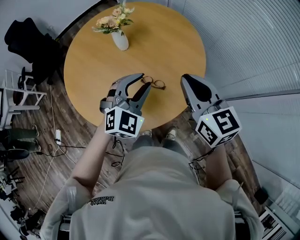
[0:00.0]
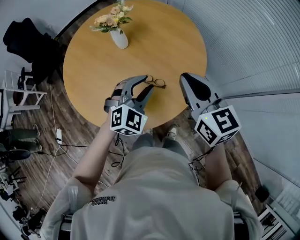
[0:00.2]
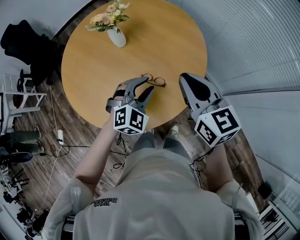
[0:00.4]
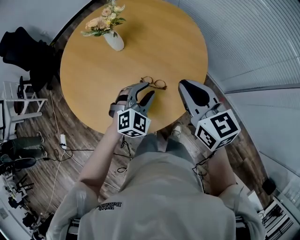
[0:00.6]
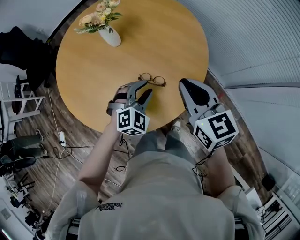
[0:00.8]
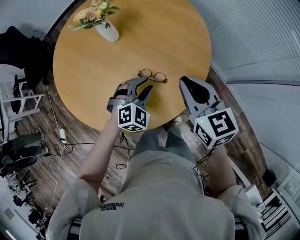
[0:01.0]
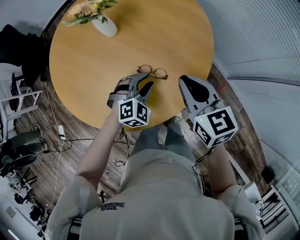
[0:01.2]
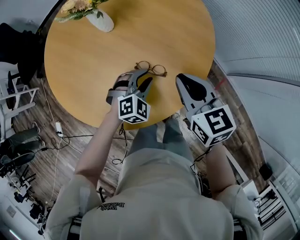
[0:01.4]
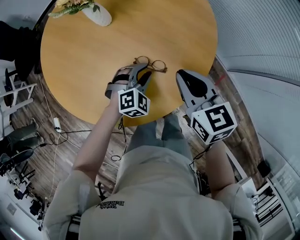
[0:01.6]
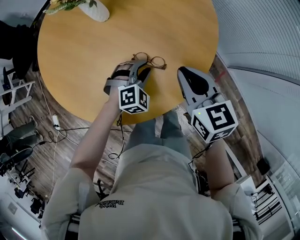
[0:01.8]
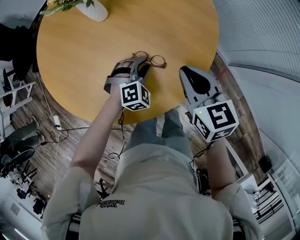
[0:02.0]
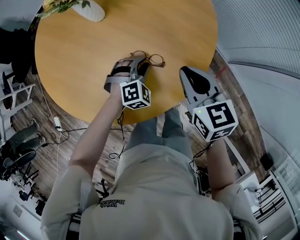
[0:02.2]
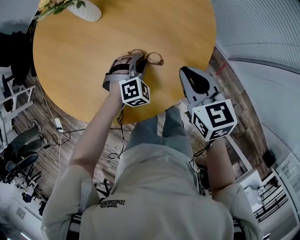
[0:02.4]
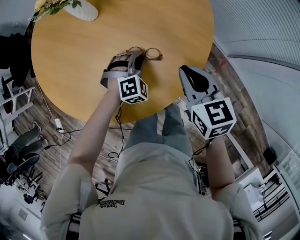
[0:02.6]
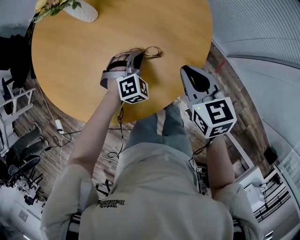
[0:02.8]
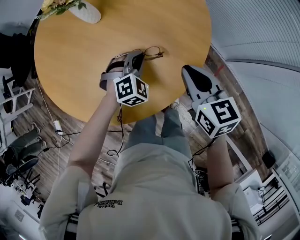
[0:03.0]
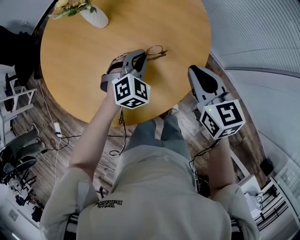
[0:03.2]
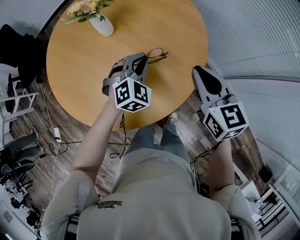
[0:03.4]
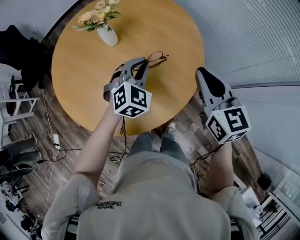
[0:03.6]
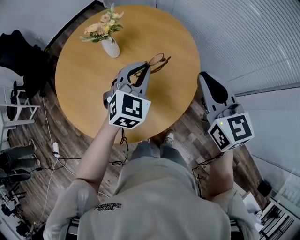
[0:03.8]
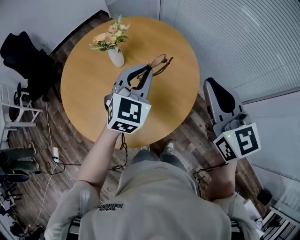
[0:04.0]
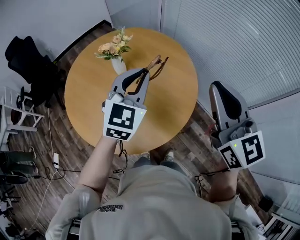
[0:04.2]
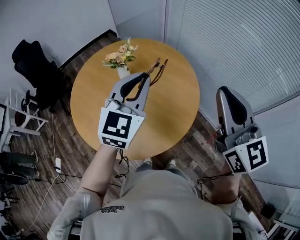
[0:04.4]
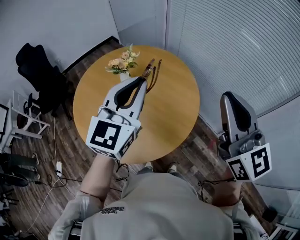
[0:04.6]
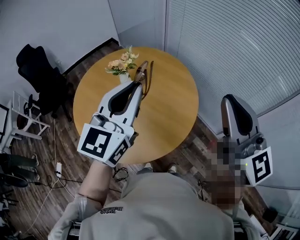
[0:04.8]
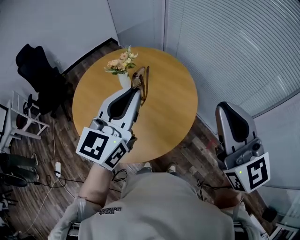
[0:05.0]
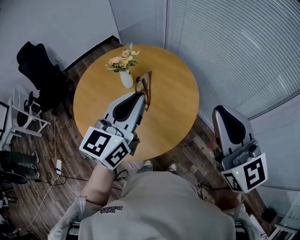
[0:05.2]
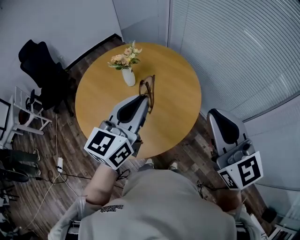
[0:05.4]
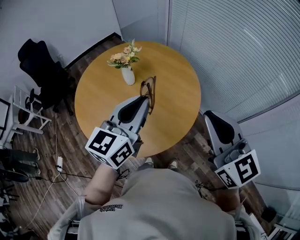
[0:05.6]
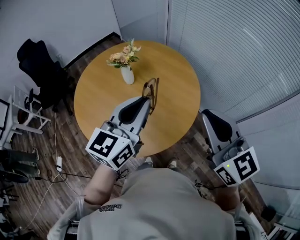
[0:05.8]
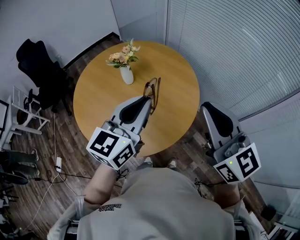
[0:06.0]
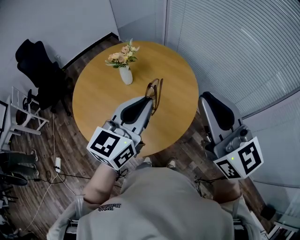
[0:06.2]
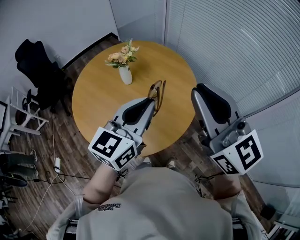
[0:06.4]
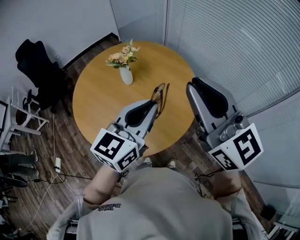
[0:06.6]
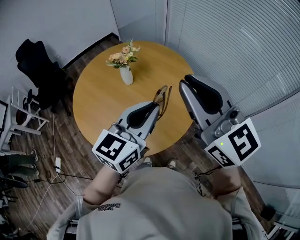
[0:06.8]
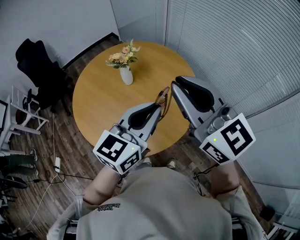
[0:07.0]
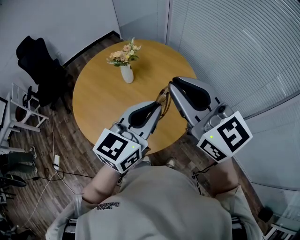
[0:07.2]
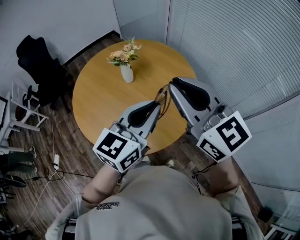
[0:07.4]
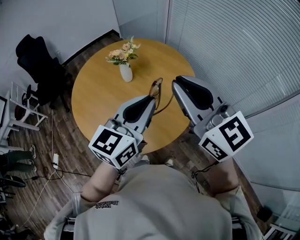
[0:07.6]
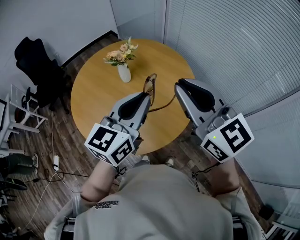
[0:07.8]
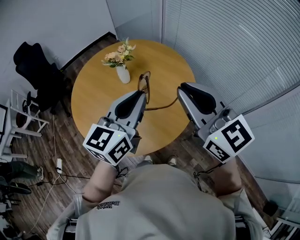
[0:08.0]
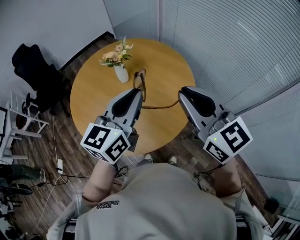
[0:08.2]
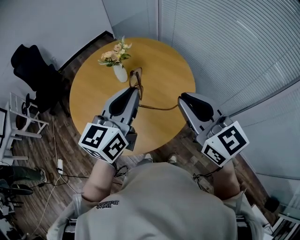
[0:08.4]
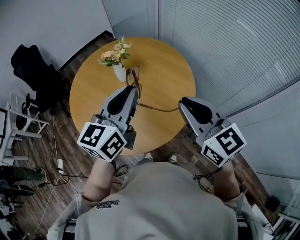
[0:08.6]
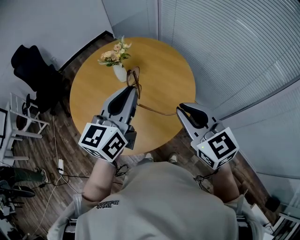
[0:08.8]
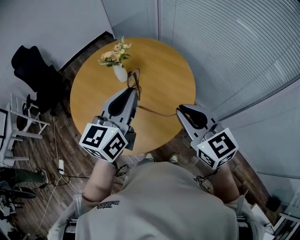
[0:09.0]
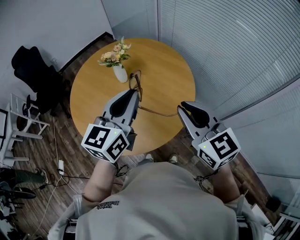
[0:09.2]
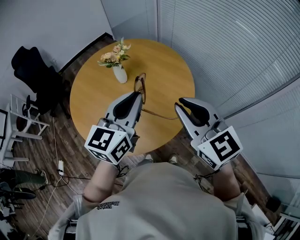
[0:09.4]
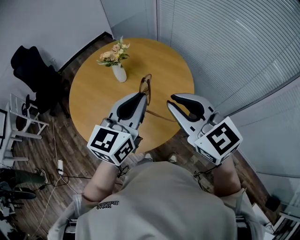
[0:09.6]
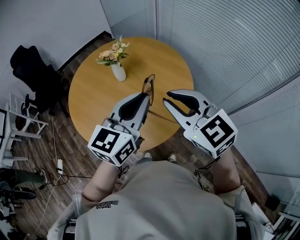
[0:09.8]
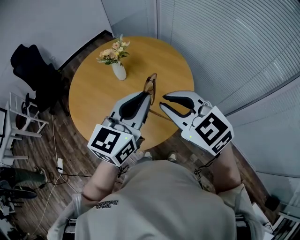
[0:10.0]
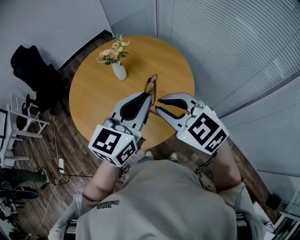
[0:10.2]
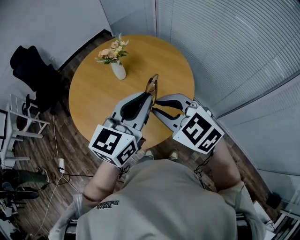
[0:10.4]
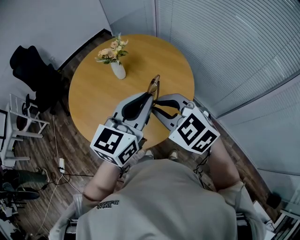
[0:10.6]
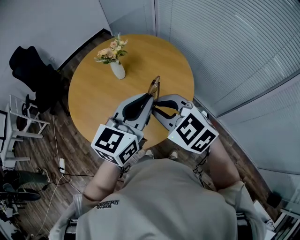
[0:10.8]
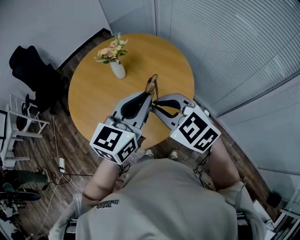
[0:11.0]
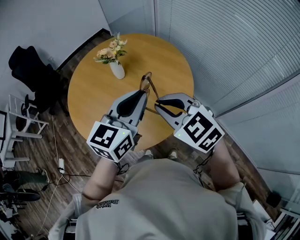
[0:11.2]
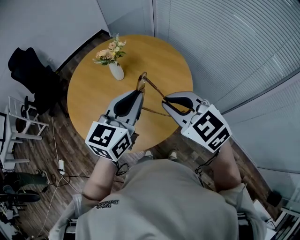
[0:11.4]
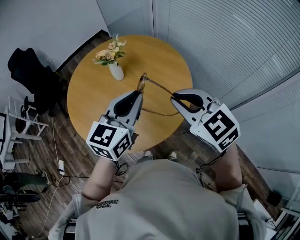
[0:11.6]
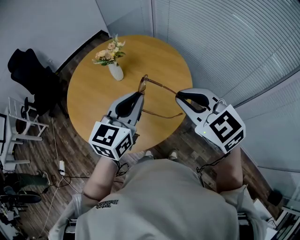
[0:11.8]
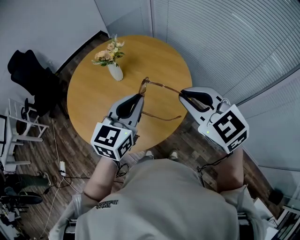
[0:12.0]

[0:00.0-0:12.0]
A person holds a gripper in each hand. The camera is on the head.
0:00.0 to 0:01.6: Both grippers move downward, roughly 20 cm. The left gripper turns by approximately 20 degrees.
0:01.6 to 0:03.0: The left gripper closes up. Meanwhile the right gripper shifts by approximately 5 cm.
0:03.0 to 0:04.4: The two grippers go approximately 40 cm upward. The left gripper angles its fingers upward, by some 40 degrees; the right gripper tips its fingers upward by about 30 degrees.
0:04.4 to 0:06.0: The left gripper moves backward, approximately 10 cm, and turns by some 30 degrees. Meanwhile the right gripper shifts roughly 5 cm backward, and moves roughly 5 cm upward and comes back.
0:06.0 to 0:07.6: The right gripper is displaced to the left by some 5 cm.
0:07.6 to 0:09.0: The right gripper shifts roughly 10 cm downward.
0:09.0 to 0:10.4: The right gripper shifts approximately 5 cm to the left, and swivels about 30 degrees, while the left gripper goes approximately 5 cm to the right.
0:10.4 to 0:12.0: The right gripper is displaced to the right by approximately 10 cm, while the left gripper changes place by approximately 5 cm.

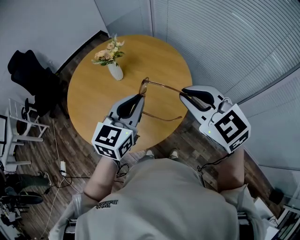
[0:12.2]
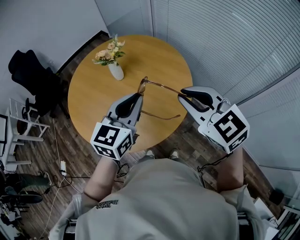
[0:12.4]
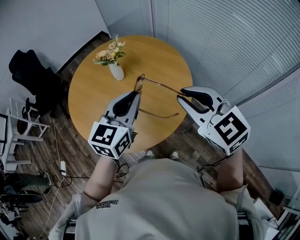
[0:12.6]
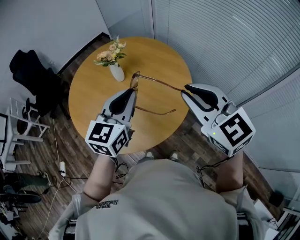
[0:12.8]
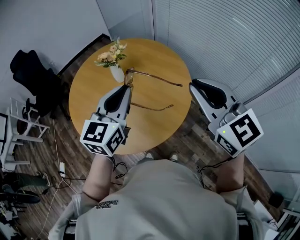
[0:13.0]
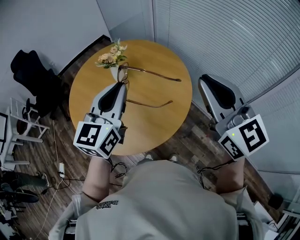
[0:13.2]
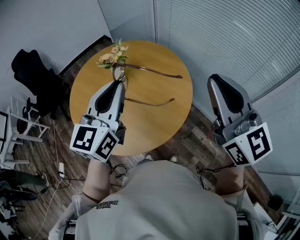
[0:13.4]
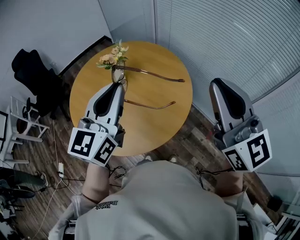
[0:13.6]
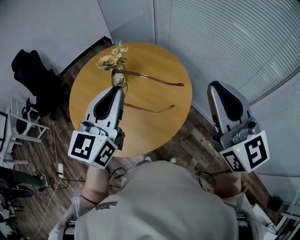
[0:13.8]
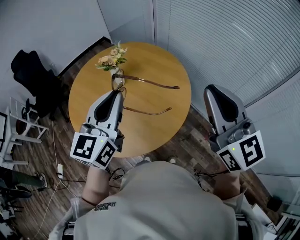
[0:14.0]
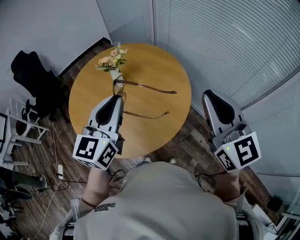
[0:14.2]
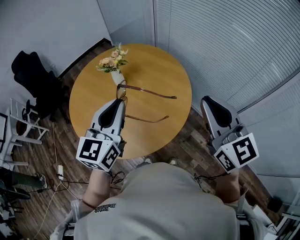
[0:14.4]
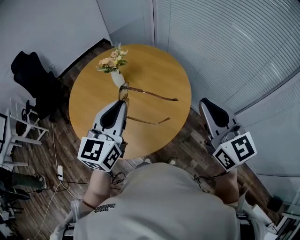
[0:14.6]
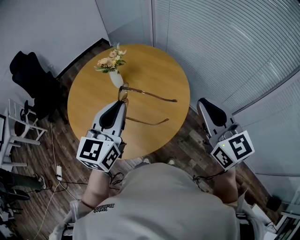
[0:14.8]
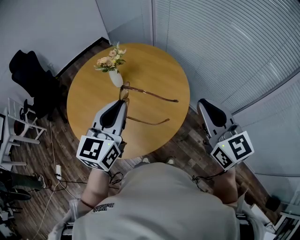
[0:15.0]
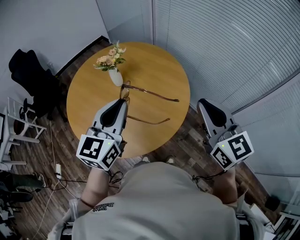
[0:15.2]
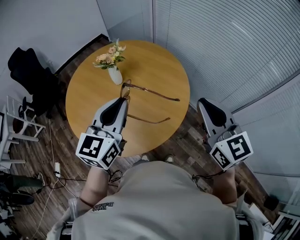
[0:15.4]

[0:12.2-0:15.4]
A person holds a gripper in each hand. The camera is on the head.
0:12.2 to 0:13.8: The left gripper goes approximately 15 cm upward and to the left; the right gripper heads upward and to the right, covering about 15 cm, and tips its fingers upward by roughly 30 degrees.
0:13.8 to 0:15.4: Both grippers travel together downward, roughly 10 cm.

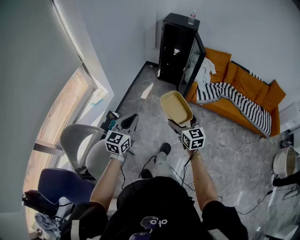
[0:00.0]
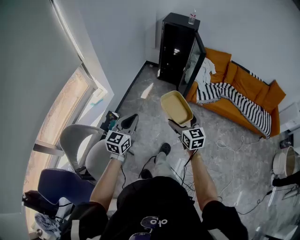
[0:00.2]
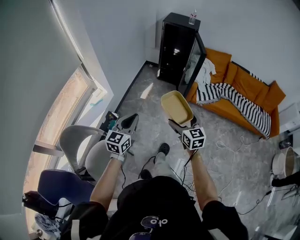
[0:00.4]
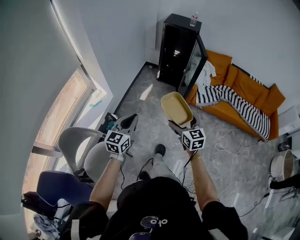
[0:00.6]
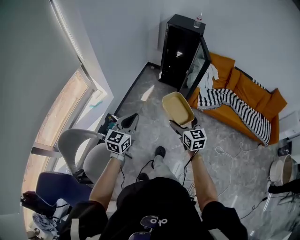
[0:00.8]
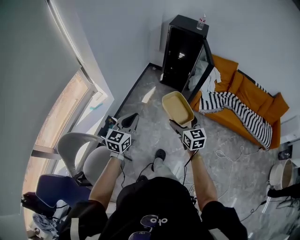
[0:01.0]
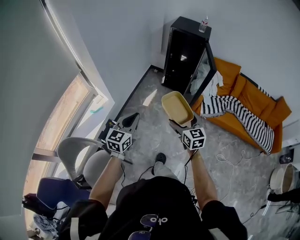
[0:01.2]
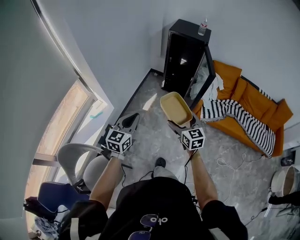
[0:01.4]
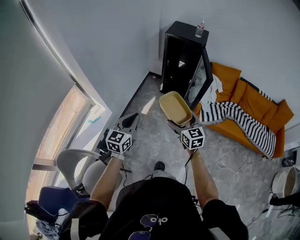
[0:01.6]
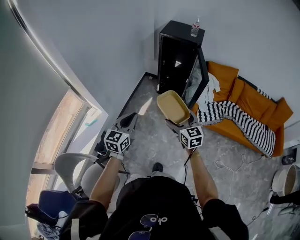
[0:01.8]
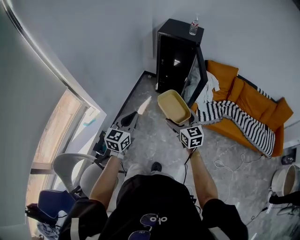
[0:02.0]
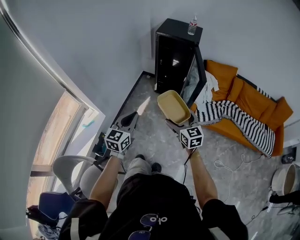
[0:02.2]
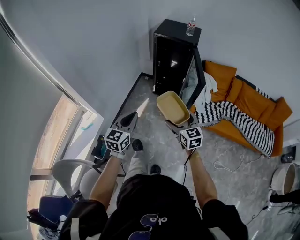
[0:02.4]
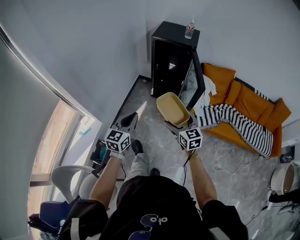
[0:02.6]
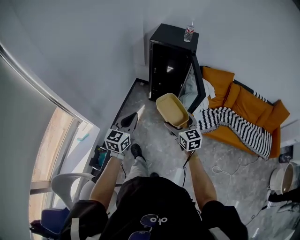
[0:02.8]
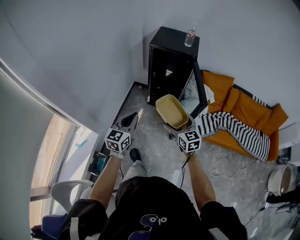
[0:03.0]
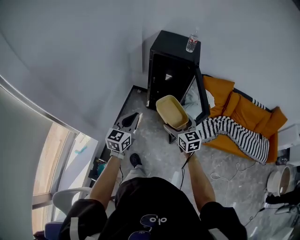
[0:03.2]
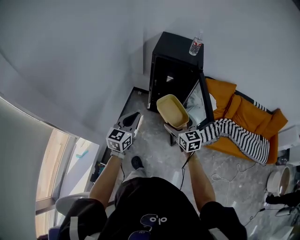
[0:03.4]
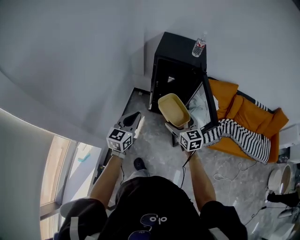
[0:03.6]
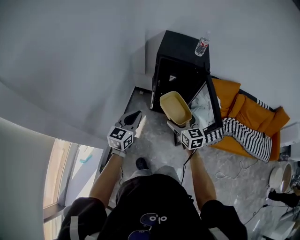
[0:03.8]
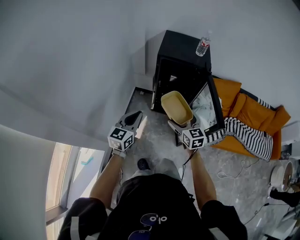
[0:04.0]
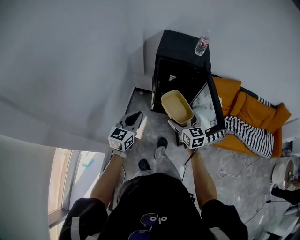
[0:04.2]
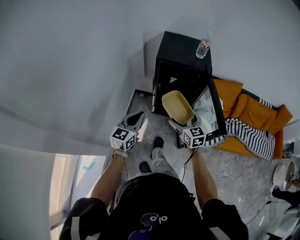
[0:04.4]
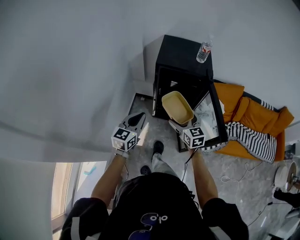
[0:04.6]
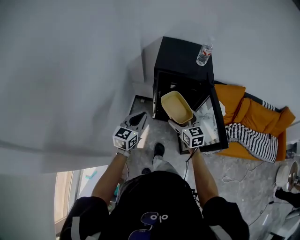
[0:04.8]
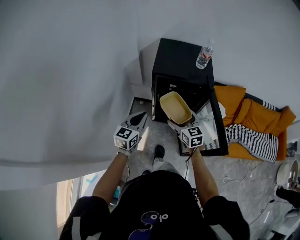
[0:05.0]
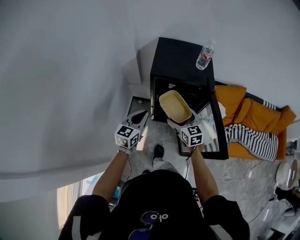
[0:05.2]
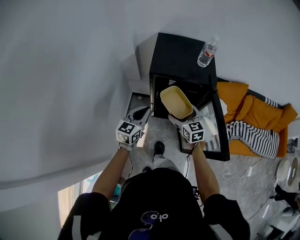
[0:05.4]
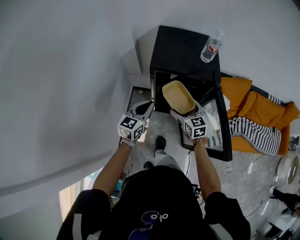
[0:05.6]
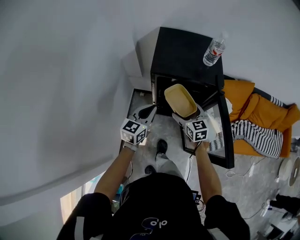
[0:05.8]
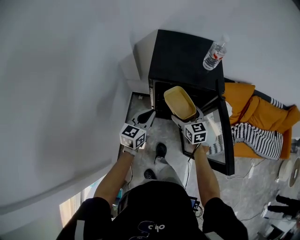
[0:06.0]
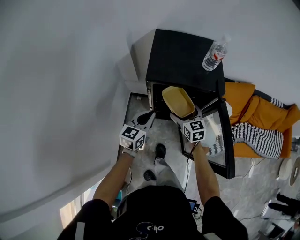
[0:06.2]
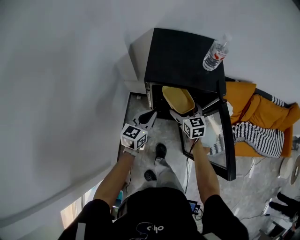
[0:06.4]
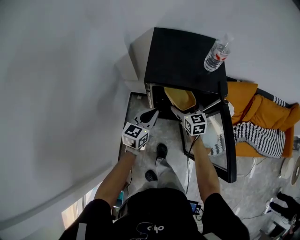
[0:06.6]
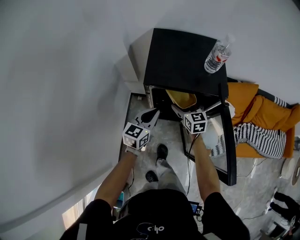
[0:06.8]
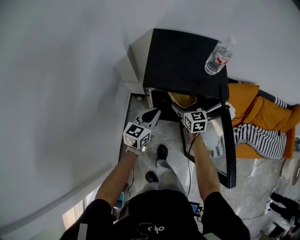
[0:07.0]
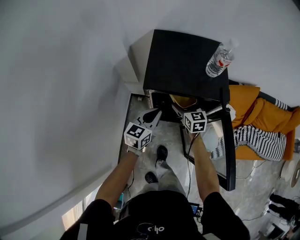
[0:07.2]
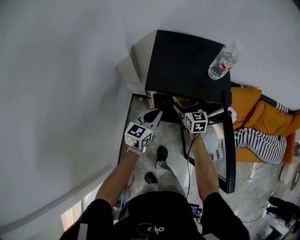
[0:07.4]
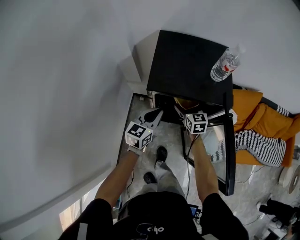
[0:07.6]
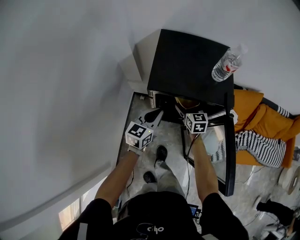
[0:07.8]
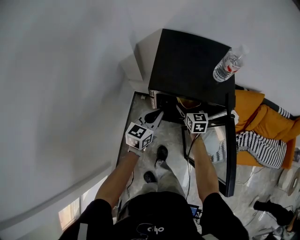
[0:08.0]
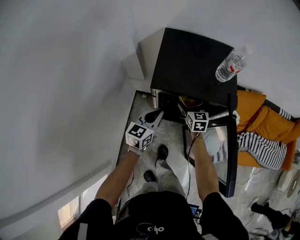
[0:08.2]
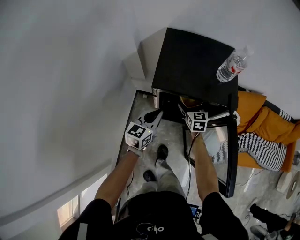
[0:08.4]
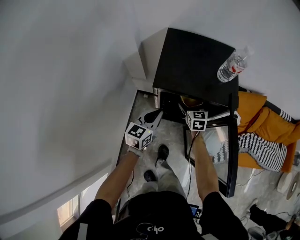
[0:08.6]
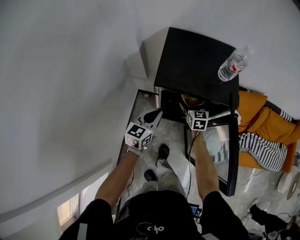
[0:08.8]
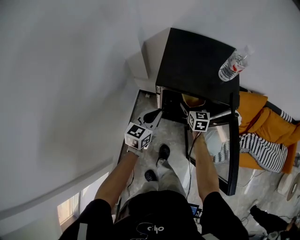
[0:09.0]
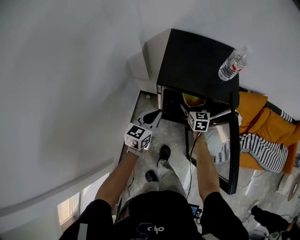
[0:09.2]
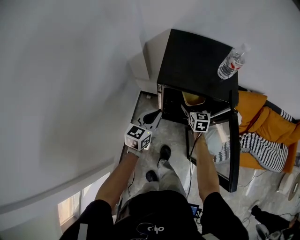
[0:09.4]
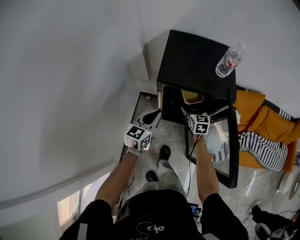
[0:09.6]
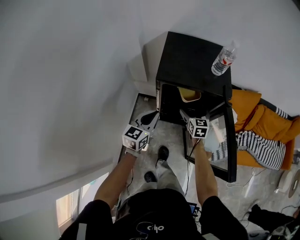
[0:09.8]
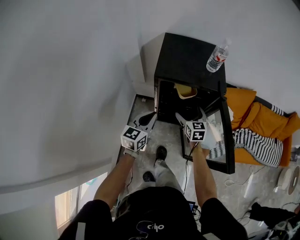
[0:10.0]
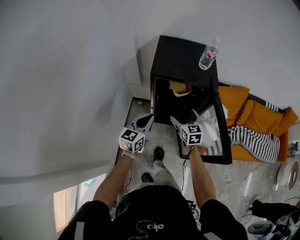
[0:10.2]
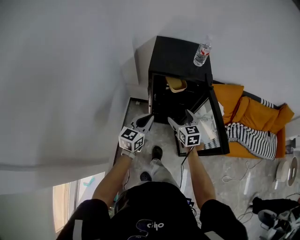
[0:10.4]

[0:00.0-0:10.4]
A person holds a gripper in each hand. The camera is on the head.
0:00.0 to 0:01.4: The grippers both shift forward by roughly 20 cm.
0:01.4 to 0:03.0: The grippers both shift forward by some 25 cm.
0:03.0 to 0:04.4: Both grippers move forward, some 20 cm.
0:04.4 to 0:06.0: The right gripper heads forward and downward, covering approximately 25 cm; the left gripper moves forward, roughly 25 cm.
0:06.0 to 0:07.4: The right gripper goes about 15 cm forward, while the left gripper travels forward by some 10 cm.
0:07.4 to 0:09.0: There are only small adjustments of the grippers.
0:09.0 to 0:10.4: The two grippers go some 25 cm backward and upward.
